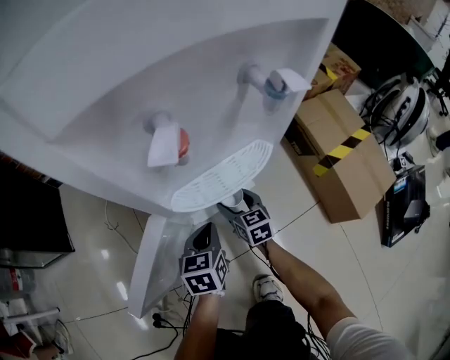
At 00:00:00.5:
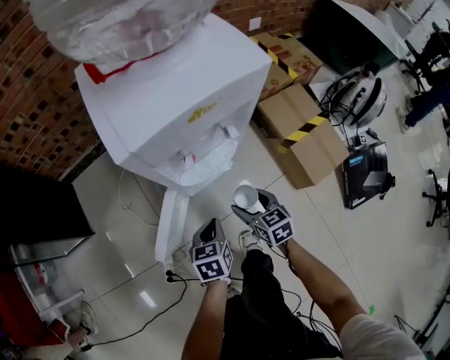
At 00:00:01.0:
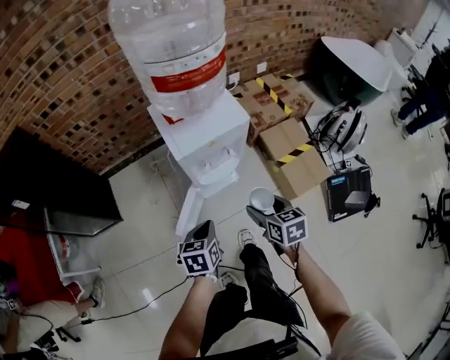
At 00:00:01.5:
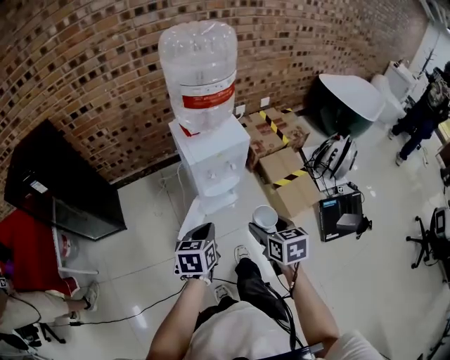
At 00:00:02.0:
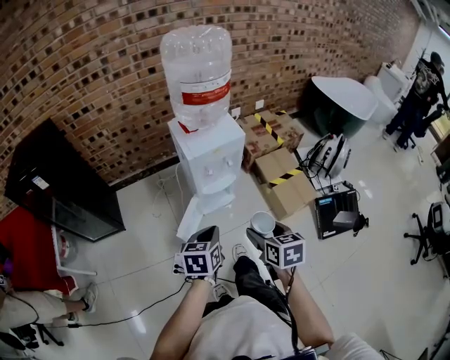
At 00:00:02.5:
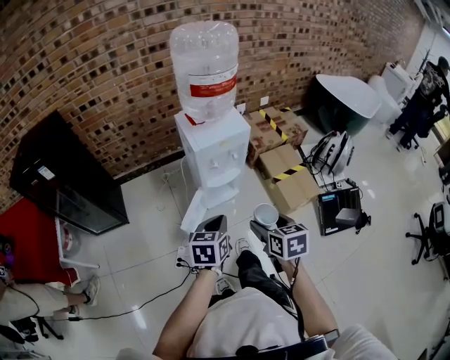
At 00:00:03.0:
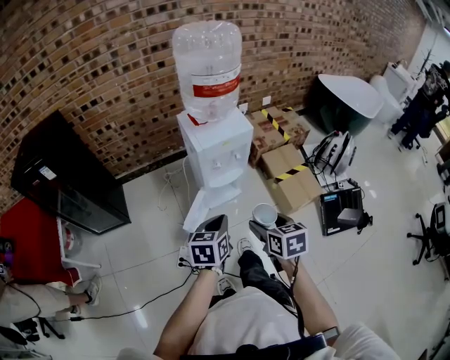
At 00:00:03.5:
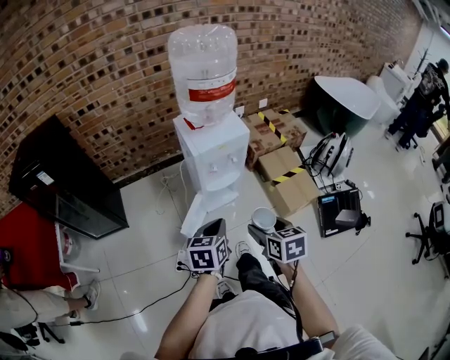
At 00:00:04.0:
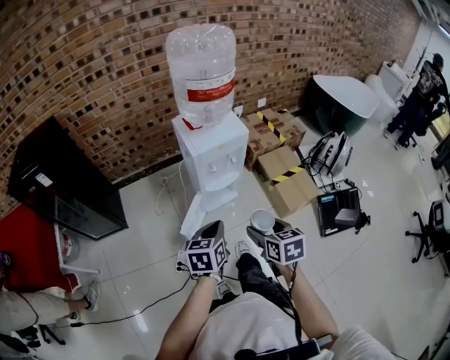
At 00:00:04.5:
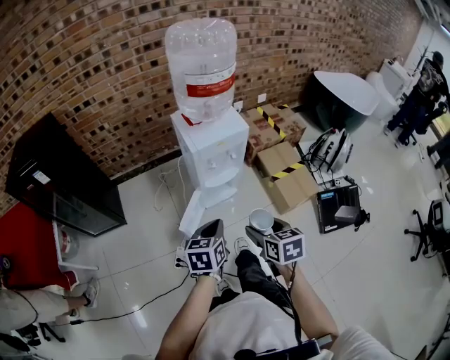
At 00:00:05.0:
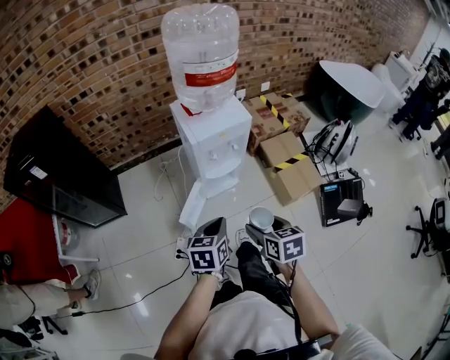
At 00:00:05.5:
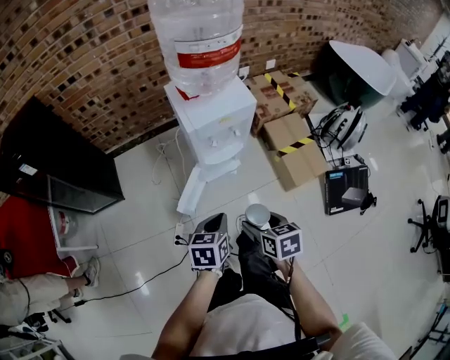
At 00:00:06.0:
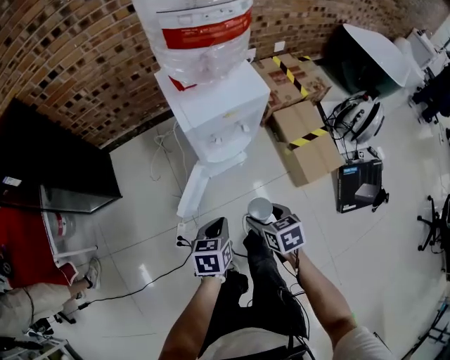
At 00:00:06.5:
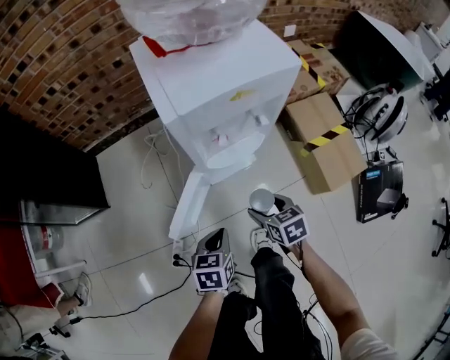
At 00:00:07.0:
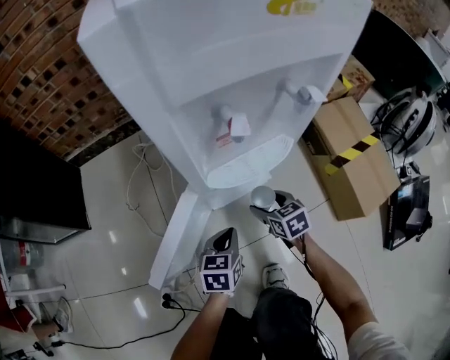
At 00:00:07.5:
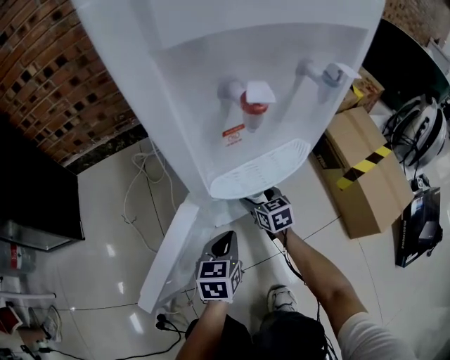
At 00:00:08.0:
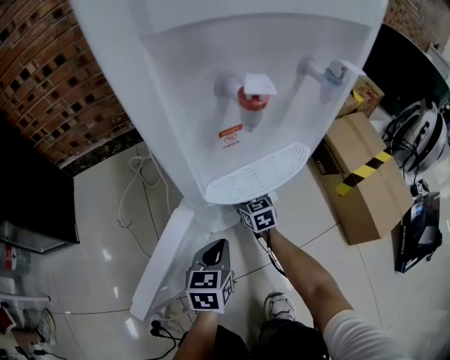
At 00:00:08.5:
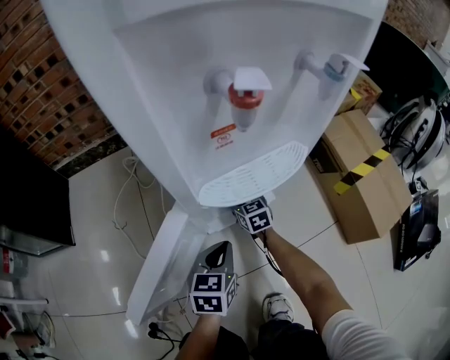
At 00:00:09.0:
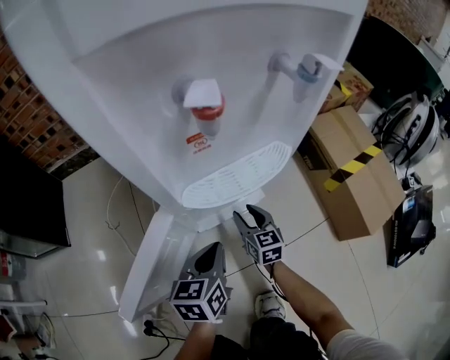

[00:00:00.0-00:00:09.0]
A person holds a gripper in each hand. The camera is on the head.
00:00:00.0 to 00:00:02.0: Both grippers travel together upward and backward, roughly 70 cm.
00:00:02.0 to 00:00:04.5: There are only small adjustments of the grippers.
00:00:04.5 to 00:00:07.0: The left gripper heads downward, covering approximately 60 cm. Meanwhile the right gripper travels downward and forward by approximately 70 cm.
00:00:07.0 to 00:00:09.0: The right gripper moves downward, some 5 cm, travels forward and back again, about 15 cm each way, and turns by roughly 20 degrees.

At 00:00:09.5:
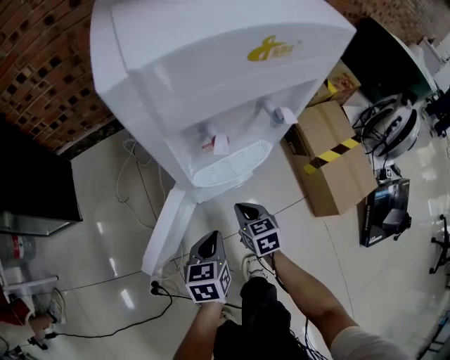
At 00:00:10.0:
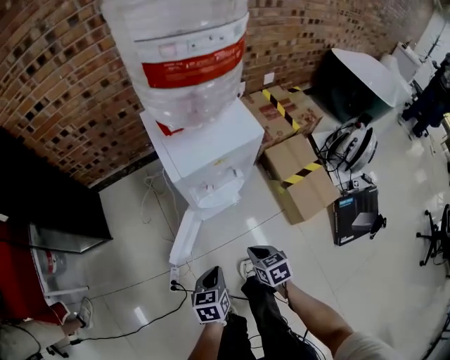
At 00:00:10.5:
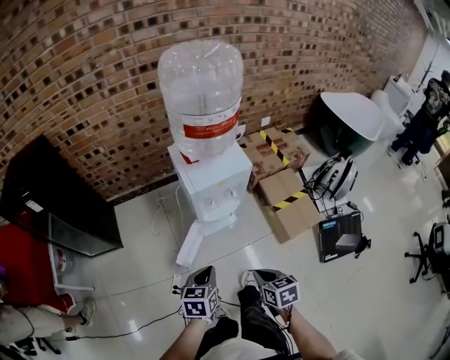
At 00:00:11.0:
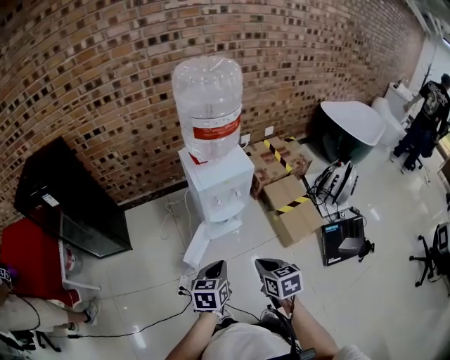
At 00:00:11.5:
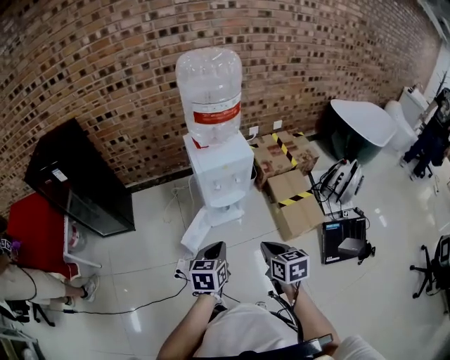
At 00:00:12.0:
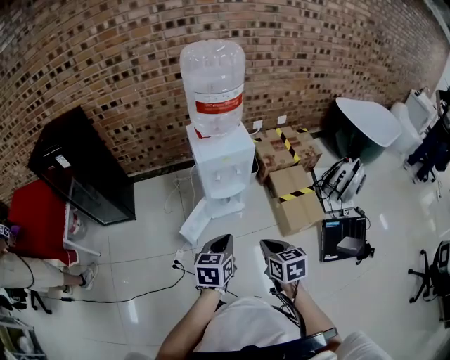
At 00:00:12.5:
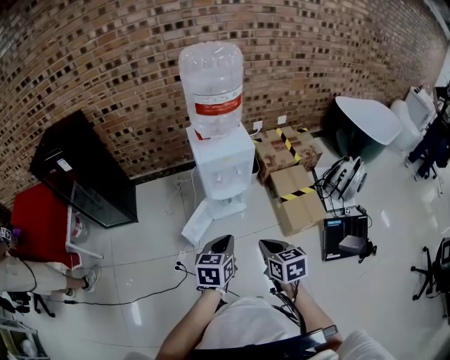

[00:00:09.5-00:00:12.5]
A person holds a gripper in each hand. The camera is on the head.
00:00:09.5 to 00:00:11.0: The grippers both shift upward and backward by about 60 cm.
00:00:11.0 to 00:00:12.5: Both grippers travel together to the right, roughly 5 cm.

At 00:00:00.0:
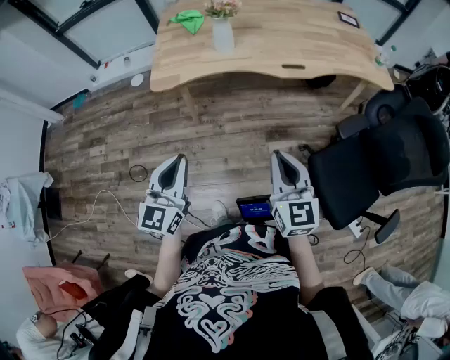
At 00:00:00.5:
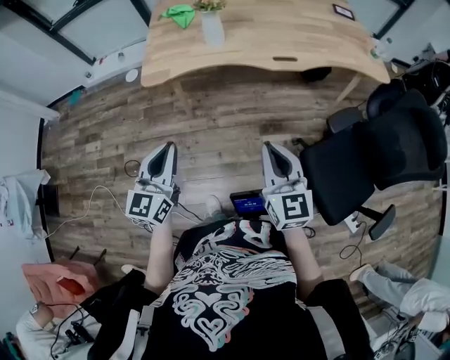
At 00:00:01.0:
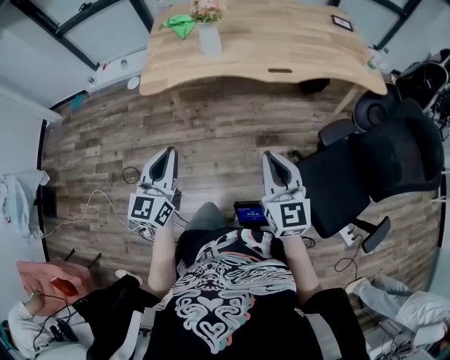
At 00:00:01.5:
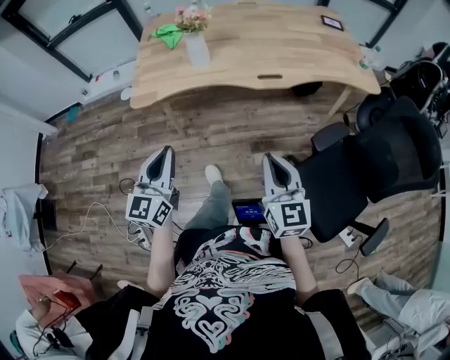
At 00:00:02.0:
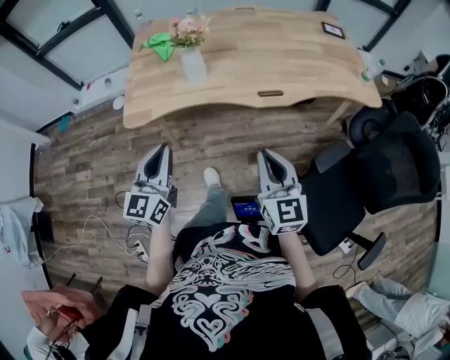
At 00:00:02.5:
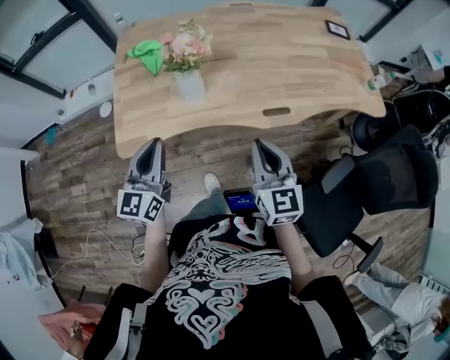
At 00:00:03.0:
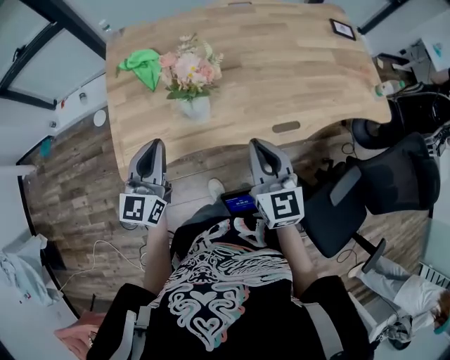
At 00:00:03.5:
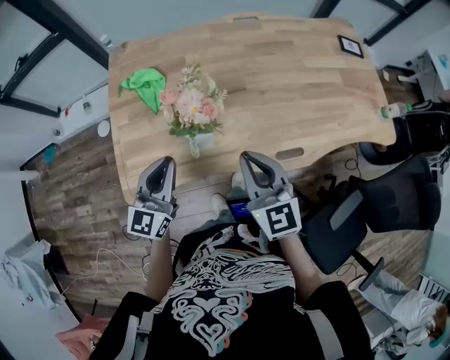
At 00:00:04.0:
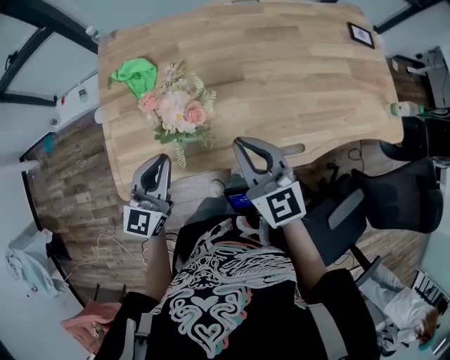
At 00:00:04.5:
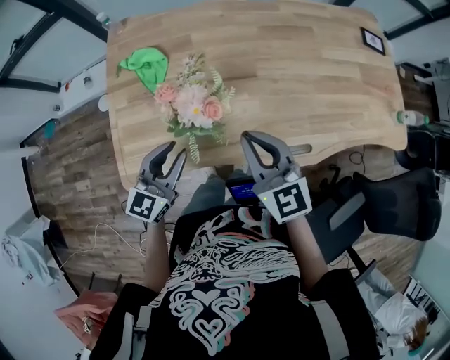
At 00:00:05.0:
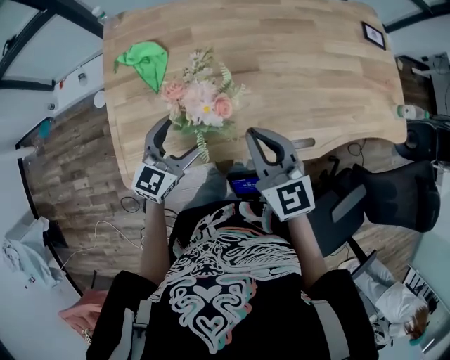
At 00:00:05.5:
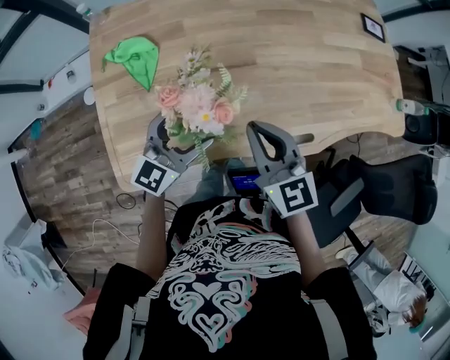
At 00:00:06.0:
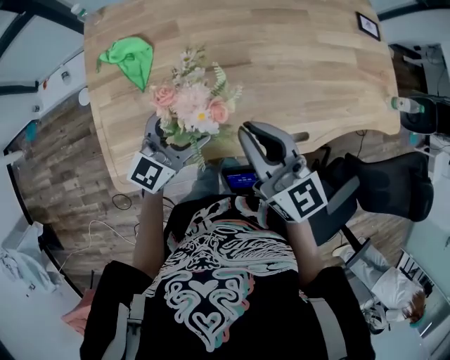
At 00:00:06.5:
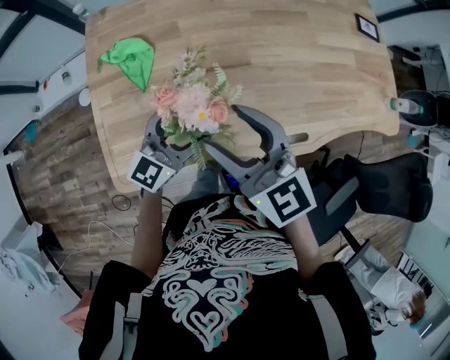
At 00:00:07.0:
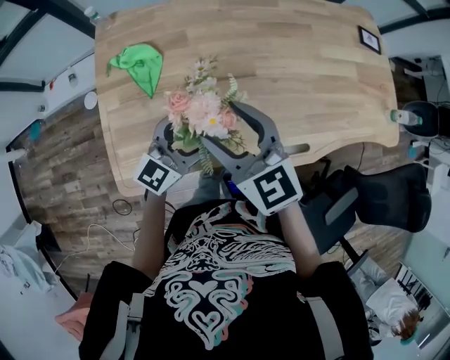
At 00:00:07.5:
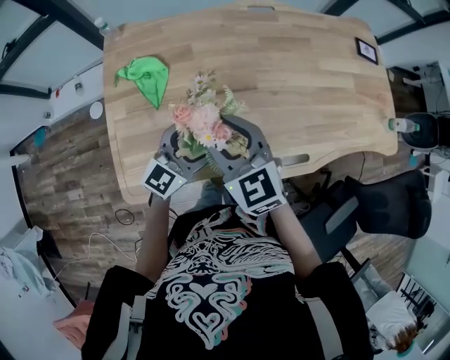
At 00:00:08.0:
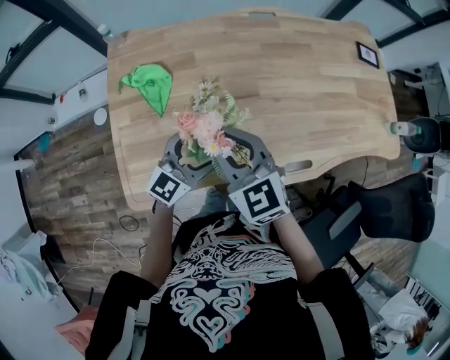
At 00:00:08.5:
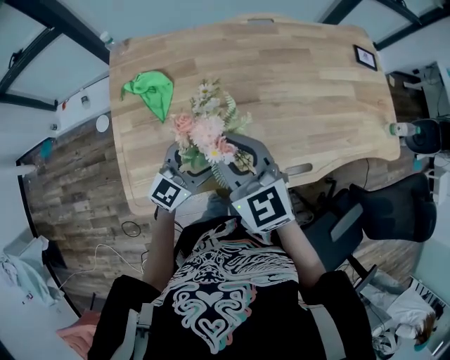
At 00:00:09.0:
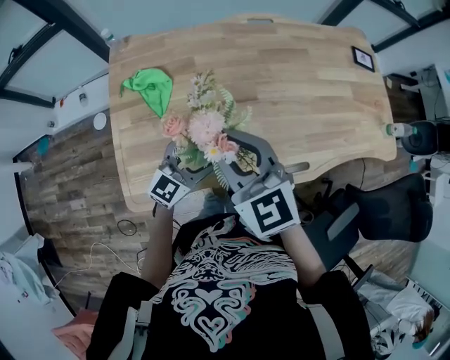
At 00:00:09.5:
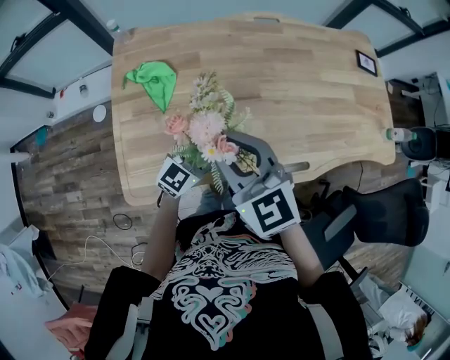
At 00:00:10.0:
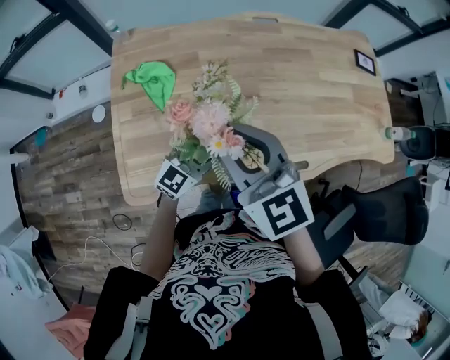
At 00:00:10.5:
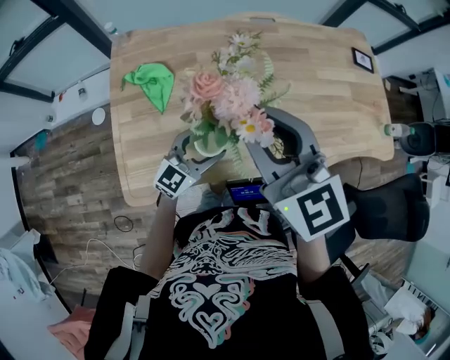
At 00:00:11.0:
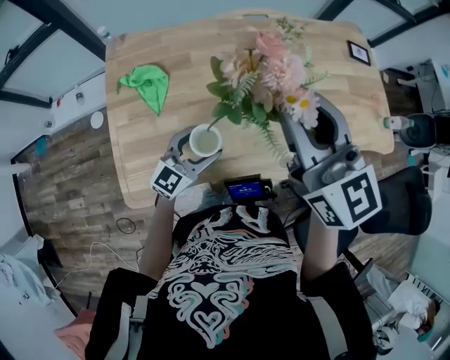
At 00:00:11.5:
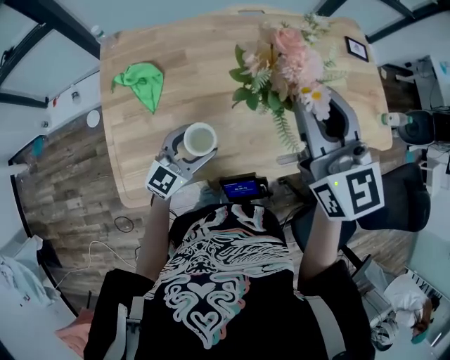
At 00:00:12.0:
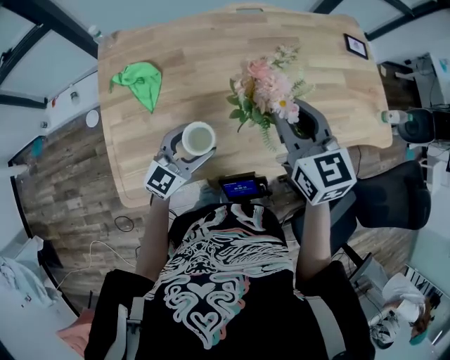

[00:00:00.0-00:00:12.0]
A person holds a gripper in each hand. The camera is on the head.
00:00:00.0 to 00:00:02.0: The left gripper heads forward, covering approximately 20 cm, while the right gripper shifts about 15 cm forward and to the right.
00:00:02.0 to 00:00:04.0: The two grippers go some 35 cm forward.
00:00:04.0 to 00:00:06.0: The right gripper shifts by roughly 5 cm. Meanwhile the left gripper moves forward, approximately 10 cm, rotates roughly 20 degrees, and opens up.
00:00:06.0 to 00:00:08.0: The right gripper is displaced to the left by some 10 cm, swivels approximately 20 degrees, and opens, then closes again.
00:00:08.0 to 00:00:10.0: The right gripper shifts roughly 10 cm upward.
00:00:10.0 to 00:00:12.0: The right gripper heads to the right and forward, covering some 15 cm.

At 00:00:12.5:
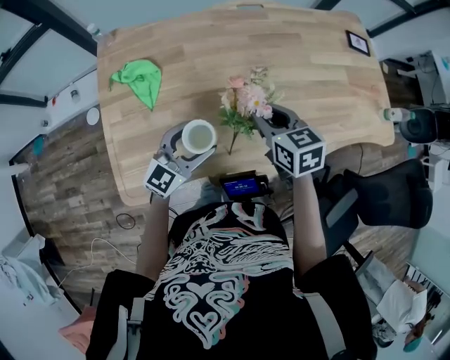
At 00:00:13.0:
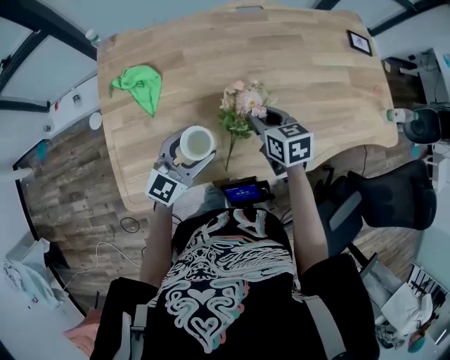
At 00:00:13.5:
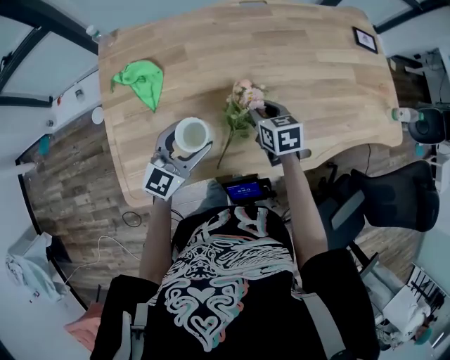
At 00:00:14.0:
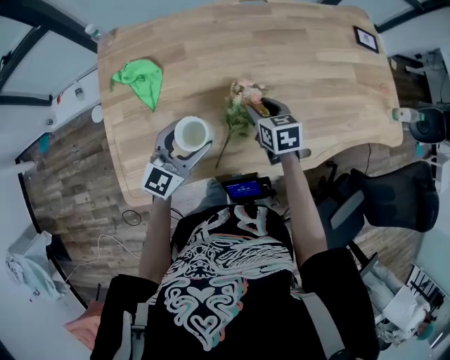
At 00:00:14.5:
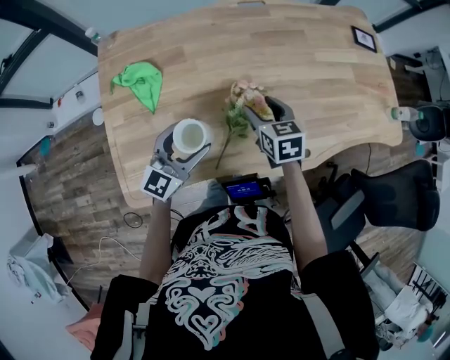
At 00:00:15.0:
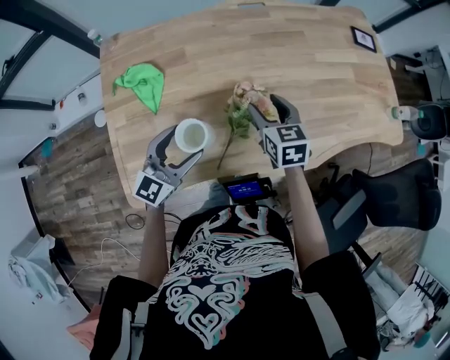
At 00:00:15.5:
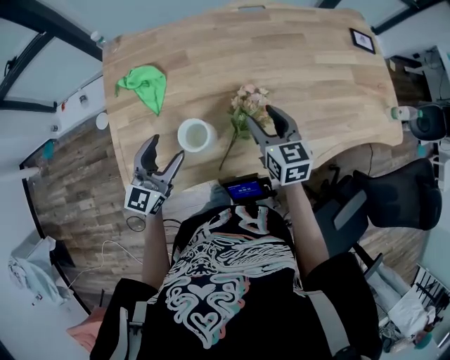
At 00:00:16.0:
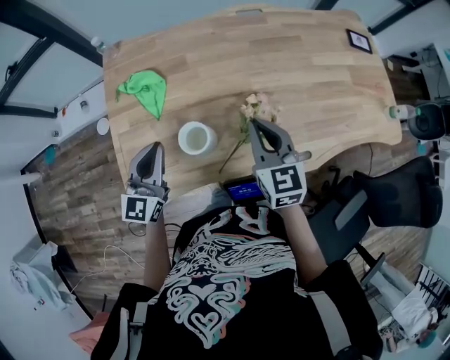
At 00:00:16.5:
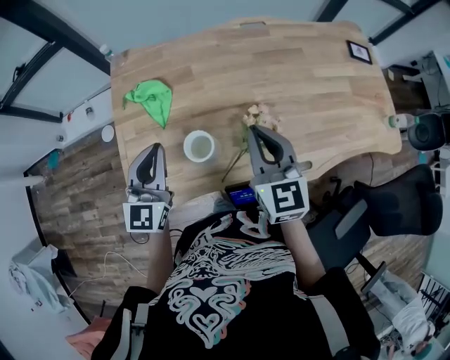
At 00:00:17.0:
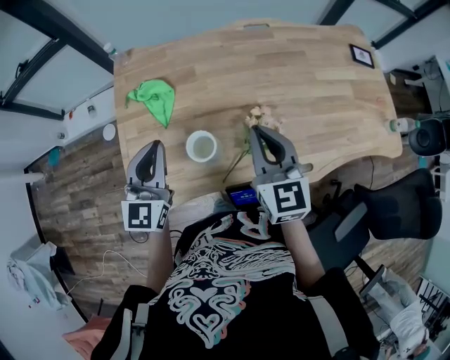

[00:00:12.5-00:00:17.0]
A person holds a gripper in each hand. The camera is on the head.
00:00:12.5 to 00:00:14.5: The right gripper goes roughly 10 cm downward, and opens its fingers.
00:00:14.5 to 00:00:17.0: The right gripper shifts some 20 cm upward, changes its angle by roughly 30 degrees, and closes up. The left gripper heads upward and to the left, covering some 15 cm, turns by about 30 degrees, and closes its fingers.
